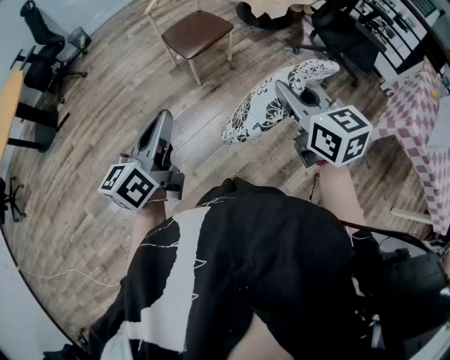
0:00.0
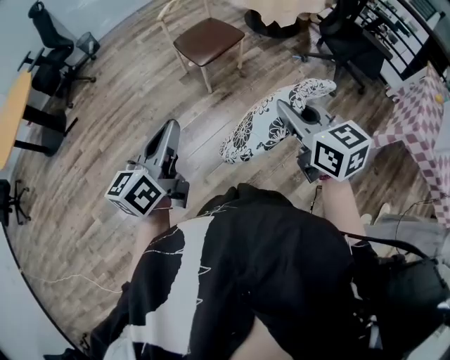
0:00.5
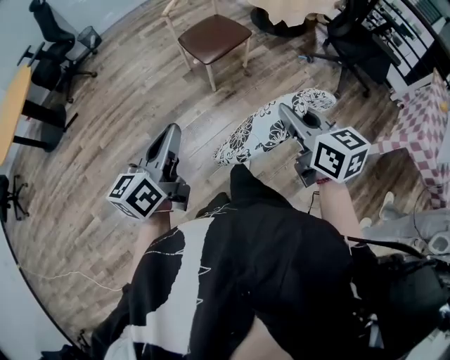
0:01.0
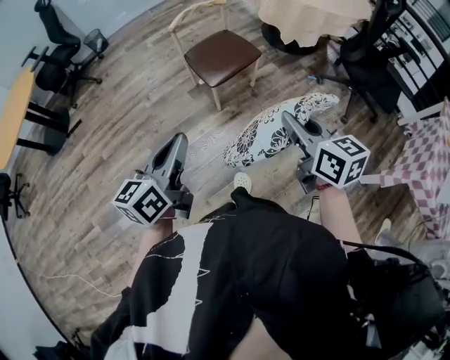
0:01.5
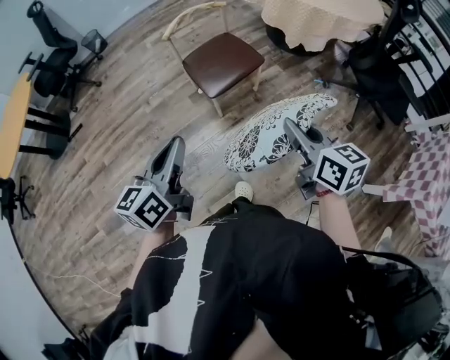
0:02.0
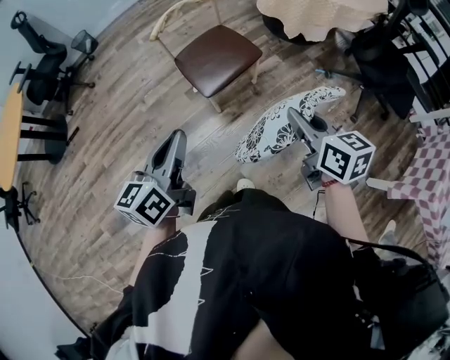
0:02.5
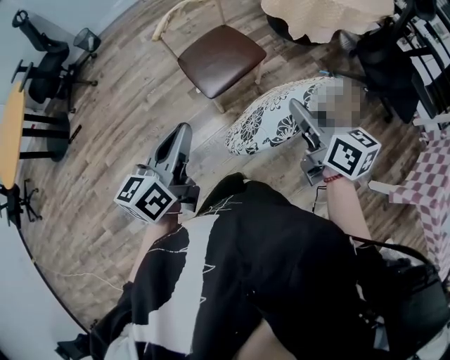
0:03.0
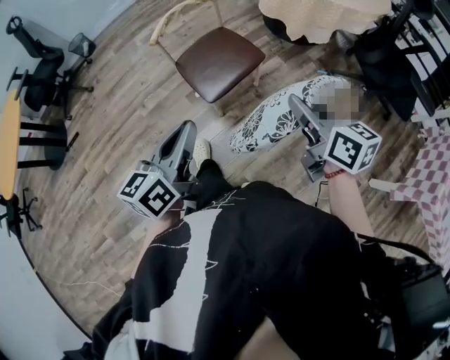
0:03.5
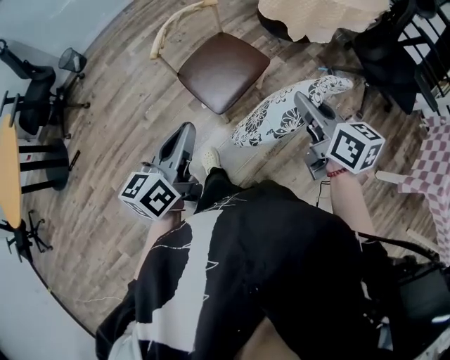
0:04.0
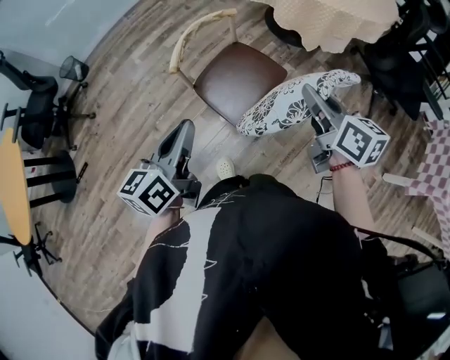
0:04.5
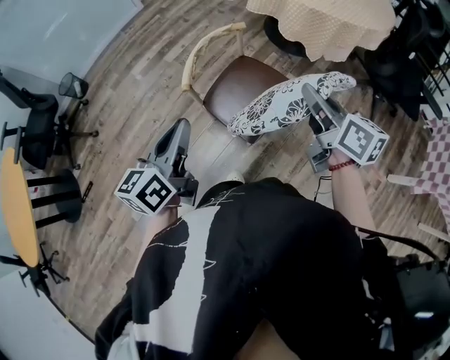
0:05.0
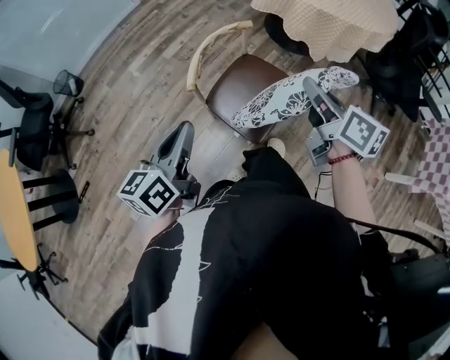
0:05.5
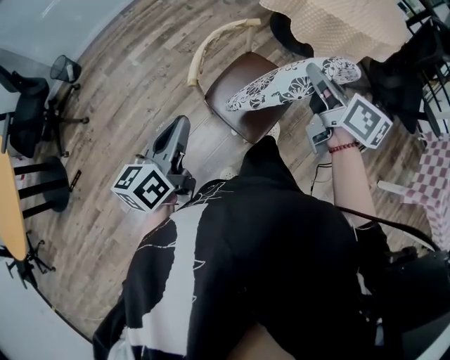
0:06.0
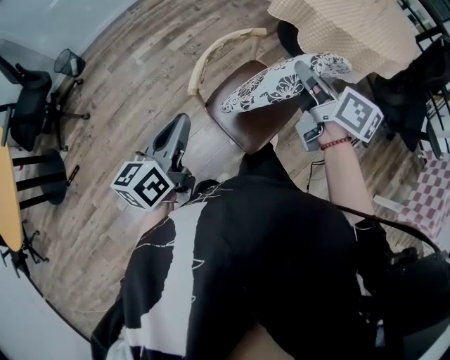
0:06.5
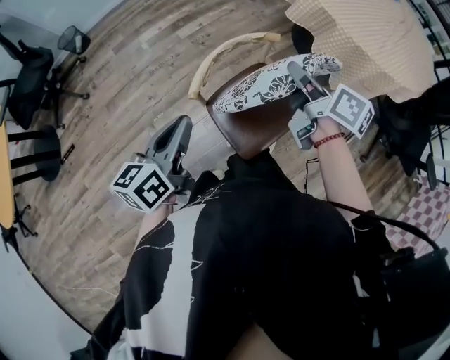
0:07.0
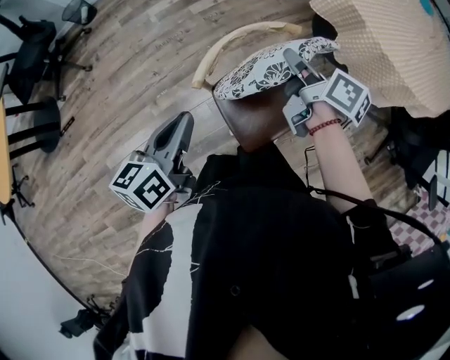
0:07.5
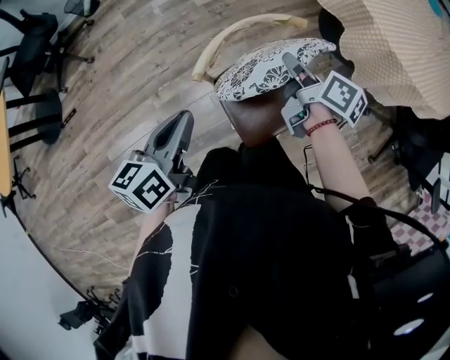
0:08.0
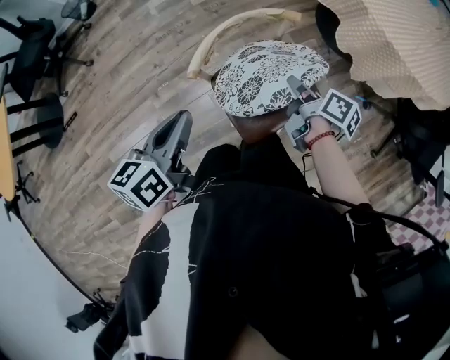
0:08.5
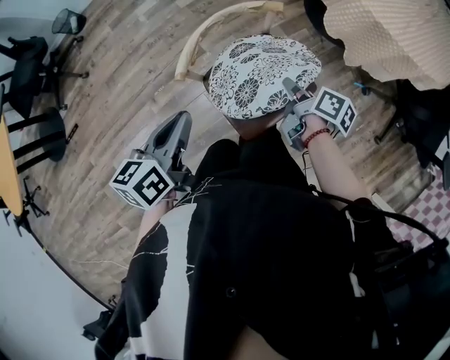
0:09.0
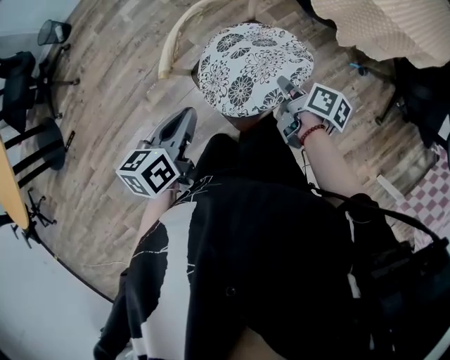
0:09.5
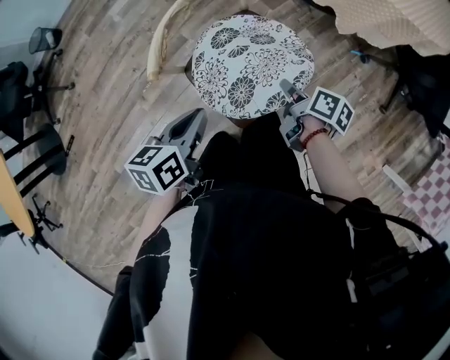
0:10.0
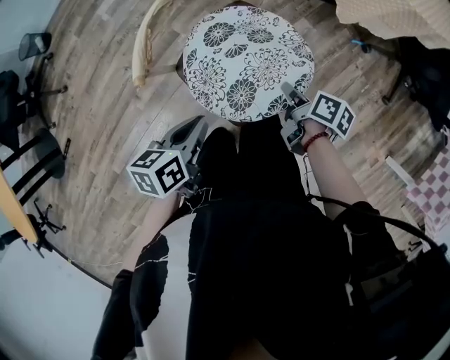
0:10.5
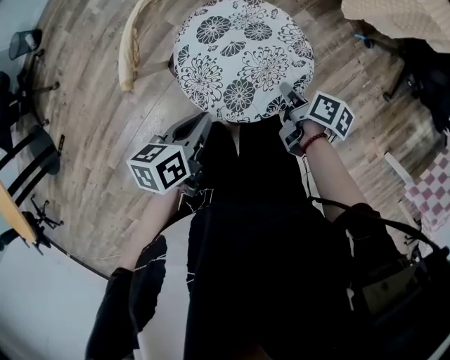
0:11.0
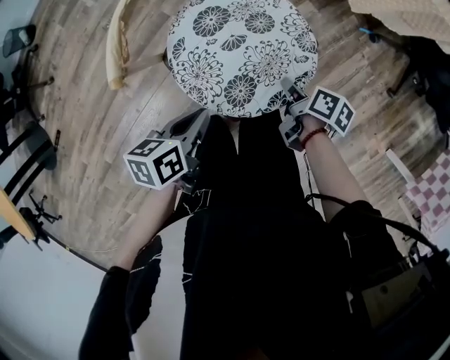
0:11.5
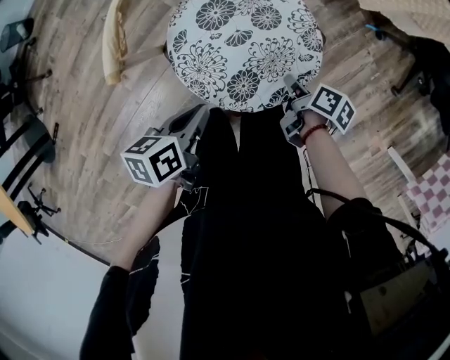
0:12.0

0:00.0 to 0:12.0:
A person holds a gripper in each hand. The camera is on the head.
0:00.0 to 0:02.0: Both grippers move forward, approximately 25 cm.
0:02.0 to 0:04.0: Both grippers move forward, about 20 cm.
0:04.0 to 0:06.0: The right gripper goes some 25 cm forward and to the left; the left gripper moves to the left and forward, some 30 cm.
0:06.0 to 0:08.0: The left gripper moves forward and downward, roughly 10 cm; the right gripper travels forward and downward by about 25 cm, and turns by approximately 30 degrees.
0:08.0 to 0:10.0: The right gripper shifts roughly 25 cm downward, backward and to the right, and turns by about 20 degrees; the left gripper moves downward and to the right, approximately 15 cm, and changes its angle by about 30 degrees.
0:10.0 to 0:12.0: The grippers both shift downward by some 15 cm.

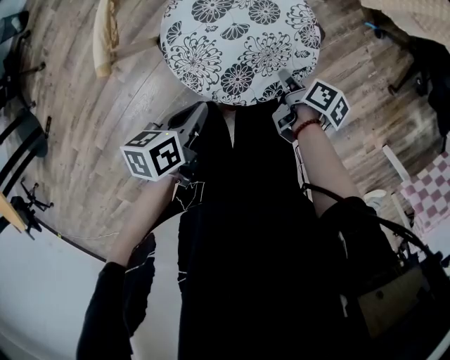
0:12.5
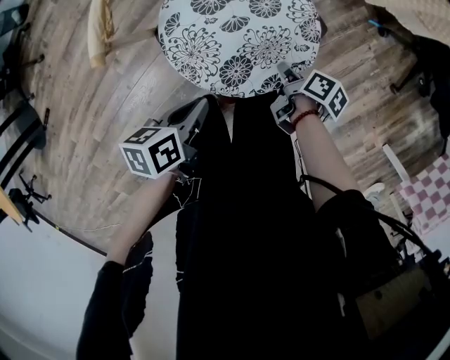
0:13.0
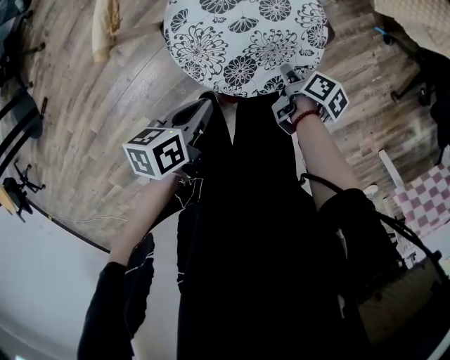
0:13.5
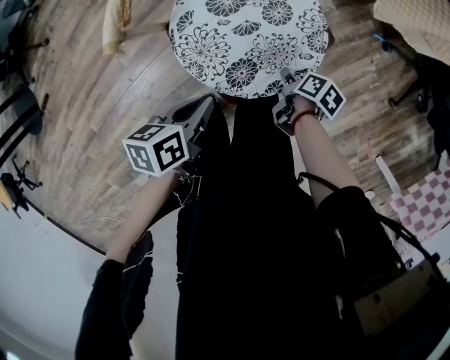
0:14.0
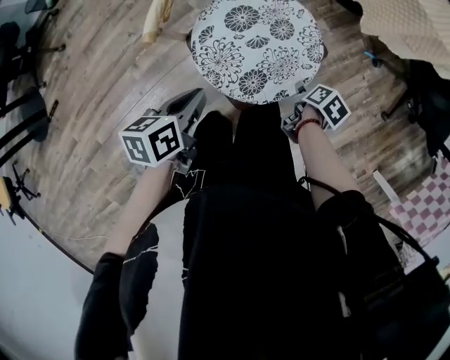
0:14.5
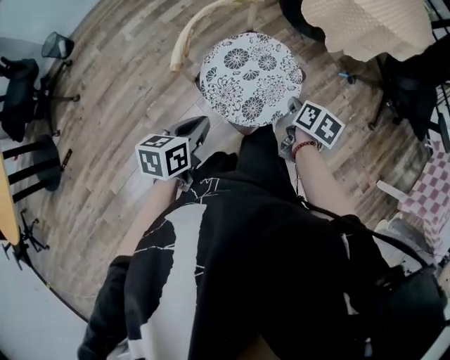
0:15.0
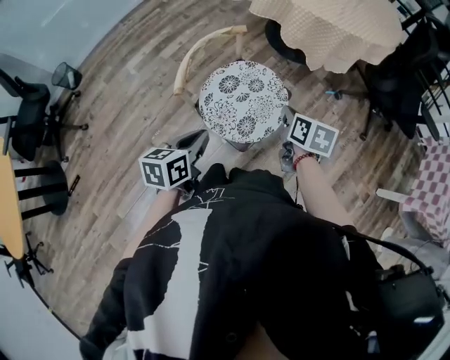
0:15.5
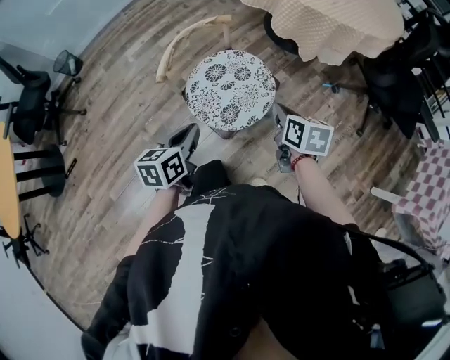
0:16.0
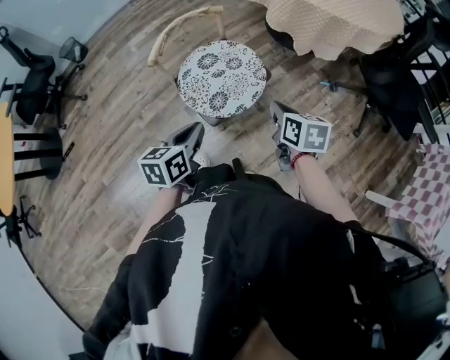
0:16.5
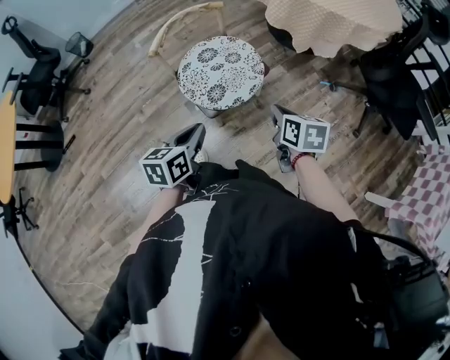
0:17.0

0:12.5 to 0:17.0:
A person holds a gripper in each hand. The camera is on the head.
0:12.5 to 0:14.5: The left gripper goes some 10 cm upward and to the left. Meanwhile the right gripper rotates approximately 30 degrees, and opens its fingers.
0:14.5 to 0:17.0: The left gripper shifts approximately 25 cm to the right, backward and upward, and rotates some 20 degrees. The right gripper is displaced upward and backward by some 30 cm, turns by some 50 degrees, and closes.

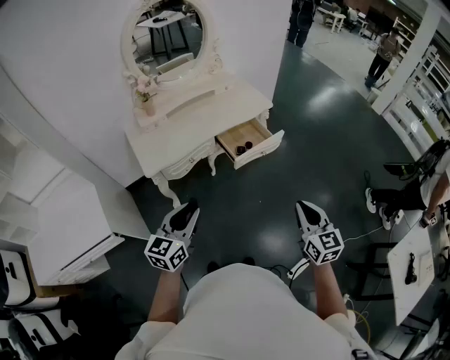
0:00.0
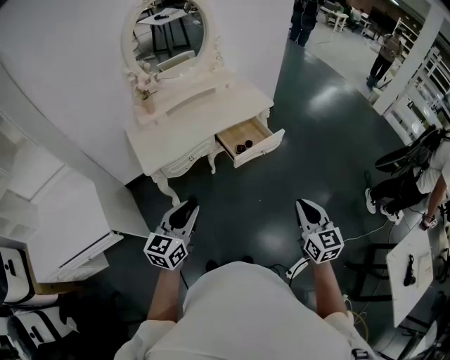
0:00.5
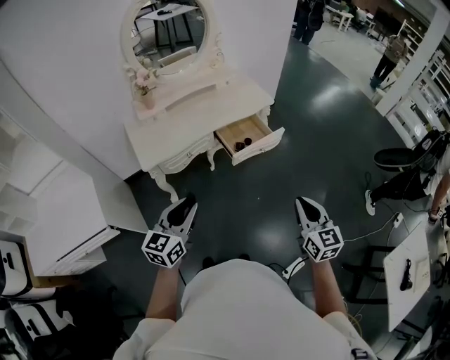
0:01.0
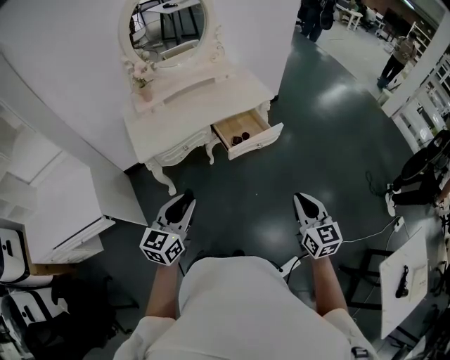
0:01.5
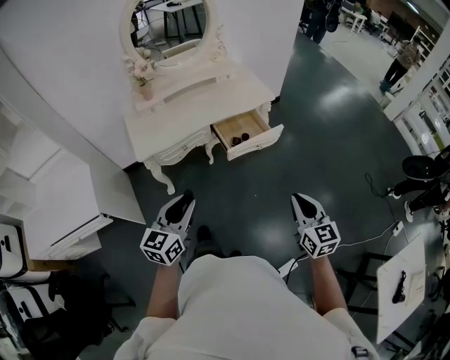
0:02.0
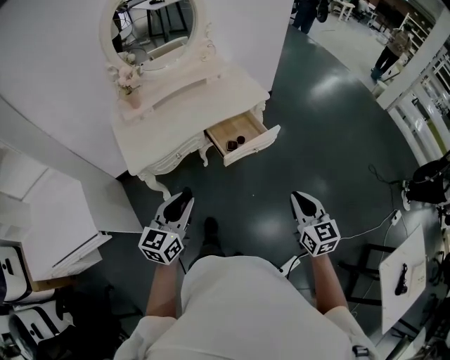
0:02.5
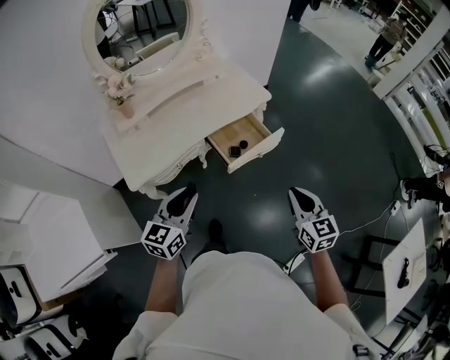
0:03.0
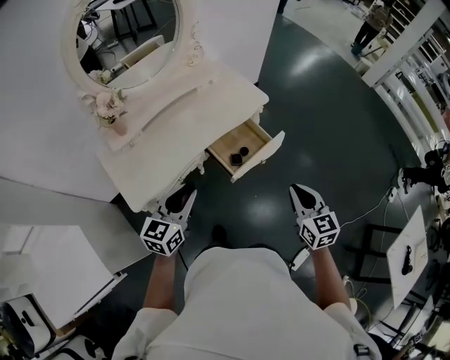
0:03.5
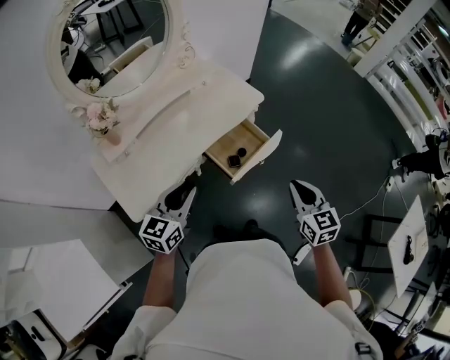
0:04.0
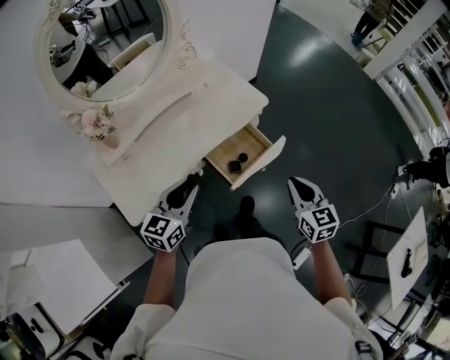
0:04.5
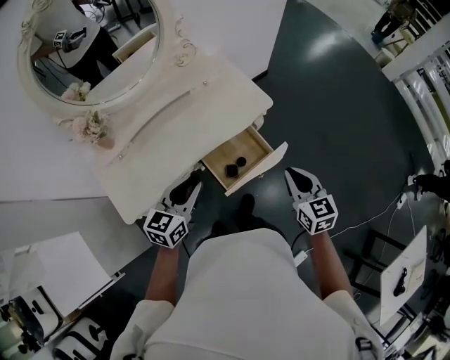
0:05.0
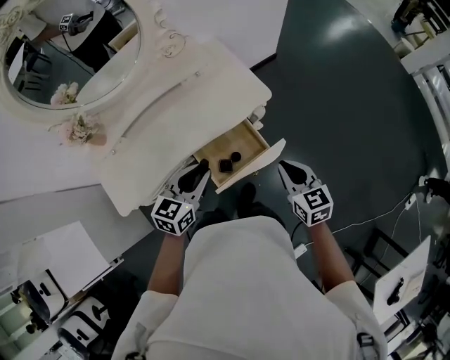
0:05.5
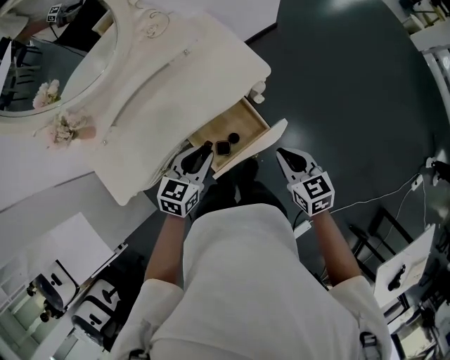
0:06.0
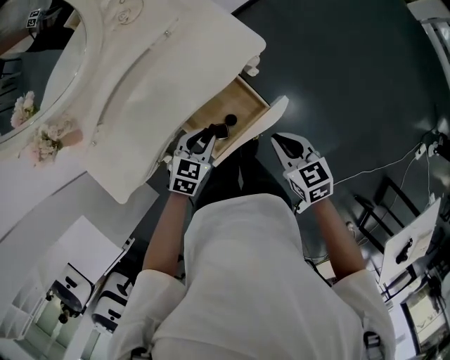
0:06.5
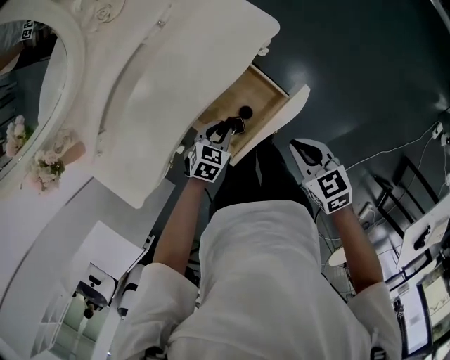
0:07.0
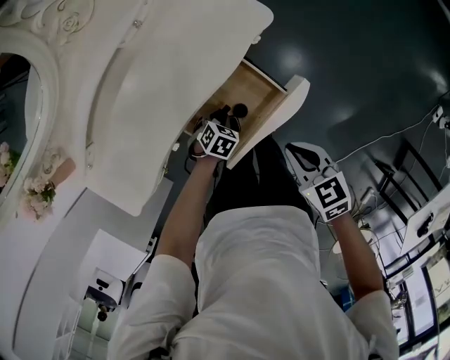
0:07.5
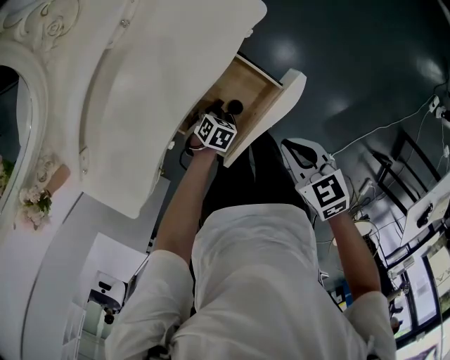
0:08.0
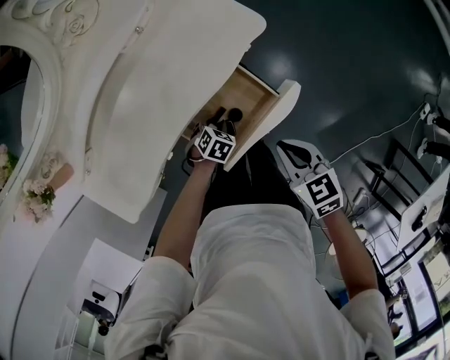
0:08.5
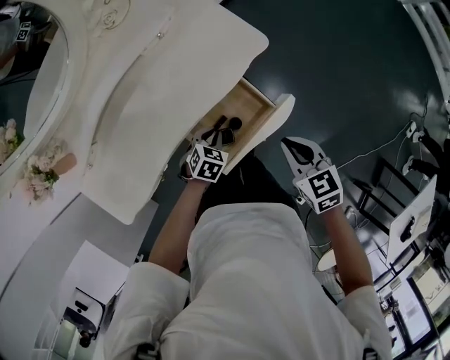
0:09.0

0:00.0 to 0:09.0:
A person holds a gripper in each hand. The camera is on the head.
0:00.0 to 0:02.0: The two grippers go approximately 5 cm to the right.
0:02.0 to 0:04.5: The two grippers go about 30 cm forward.
0:04.5 to 0:07.0: The left gripper travels downward and to the right by some 35 cm, and points its fingers about 40 degrees further downward, while the right gripper goes roughly 20 cm downward and forward, and changes its angle by approximately 30 degrees.
0:07.0 to 0:09.0: The right gripper moves approximately 5 cm. Meanwhile the left gripper moves approximately 15 cm downward and comes back.

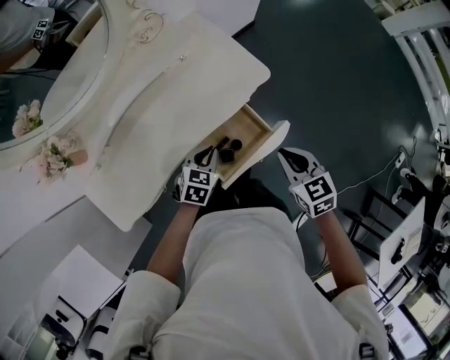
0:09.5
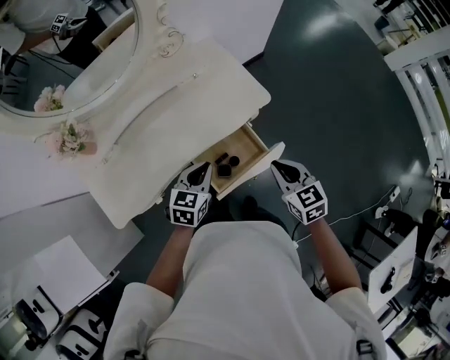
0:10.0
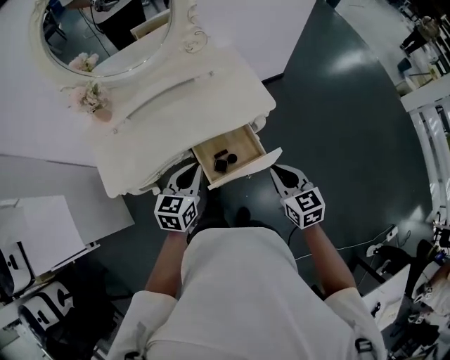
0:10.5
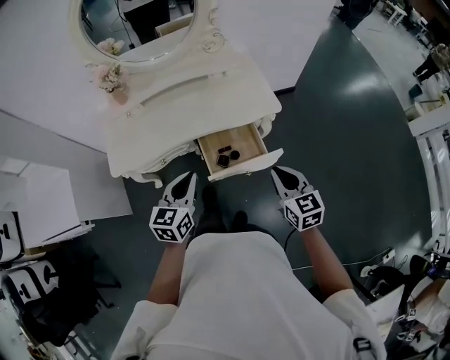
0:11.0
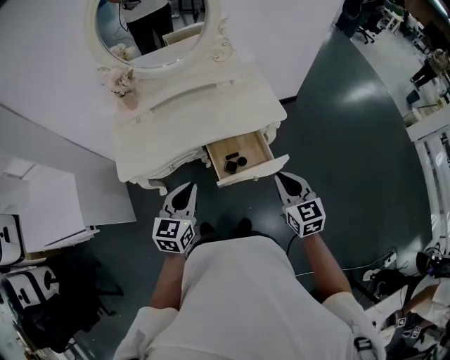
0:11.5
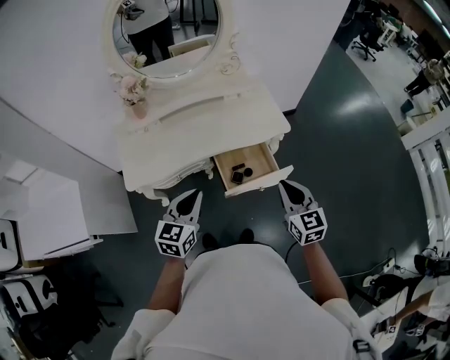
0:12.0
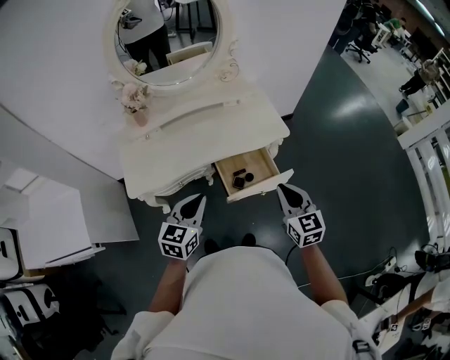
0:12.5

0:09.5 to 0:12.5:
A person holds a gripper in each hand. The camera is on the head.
0:09.5 to 0:11.0: The right gripper changes place by some 10 cm, and swivels roughly 20 degrees, while the left gripper travels upward by some 20 cm, and changes its angle by approximately 50 degrees.
0:11.0 to 0:12.5: The grippers both shift to the left by approximately 10 cm.
